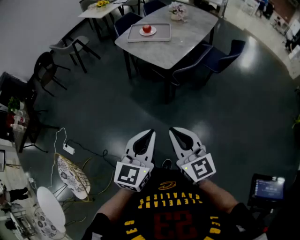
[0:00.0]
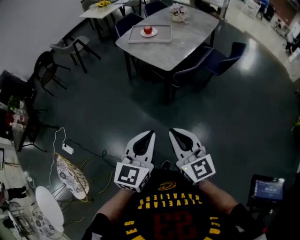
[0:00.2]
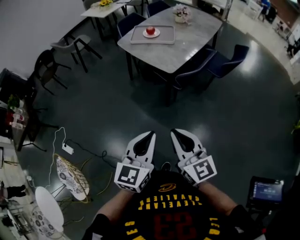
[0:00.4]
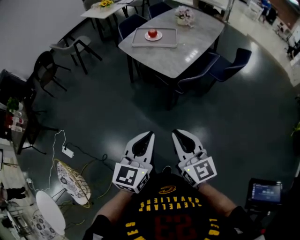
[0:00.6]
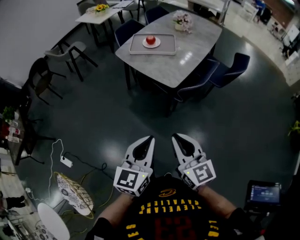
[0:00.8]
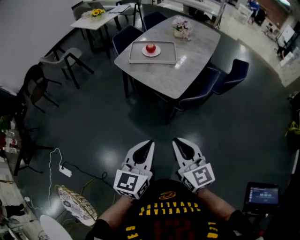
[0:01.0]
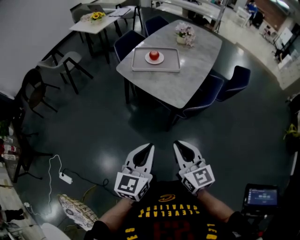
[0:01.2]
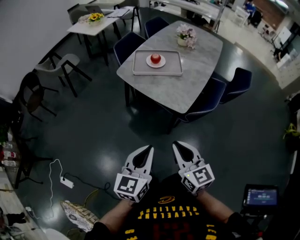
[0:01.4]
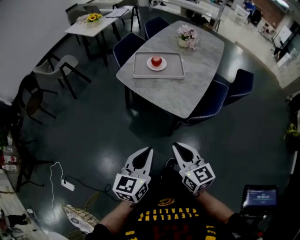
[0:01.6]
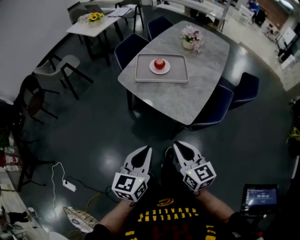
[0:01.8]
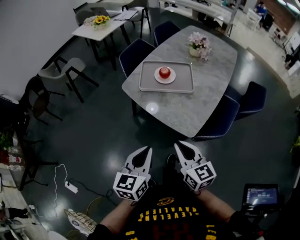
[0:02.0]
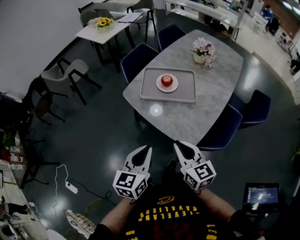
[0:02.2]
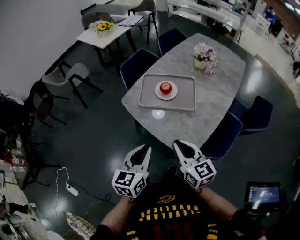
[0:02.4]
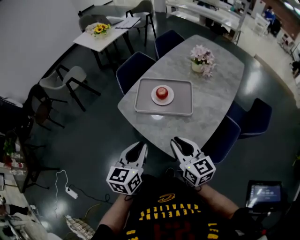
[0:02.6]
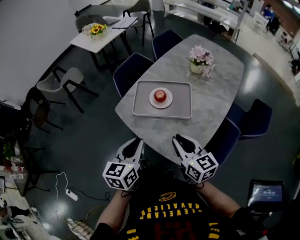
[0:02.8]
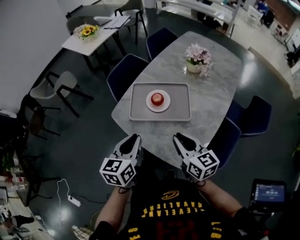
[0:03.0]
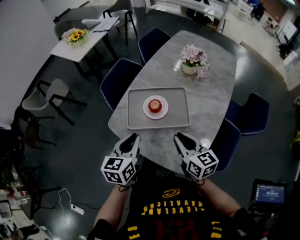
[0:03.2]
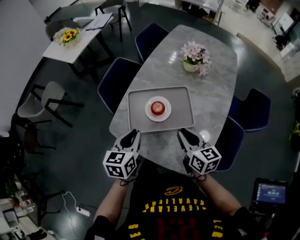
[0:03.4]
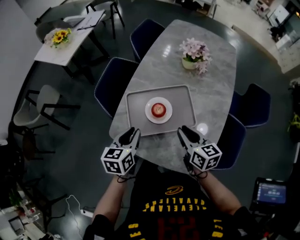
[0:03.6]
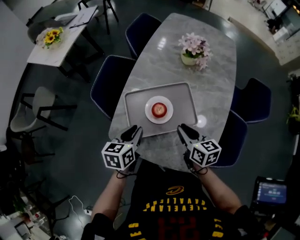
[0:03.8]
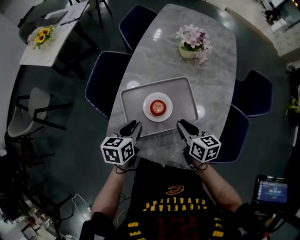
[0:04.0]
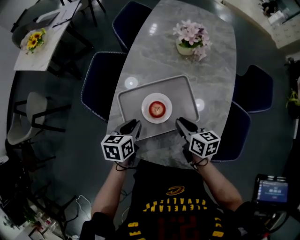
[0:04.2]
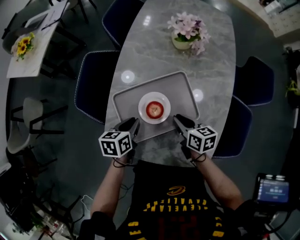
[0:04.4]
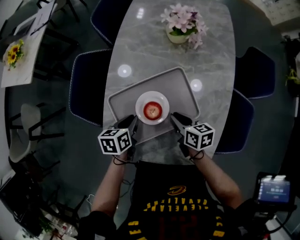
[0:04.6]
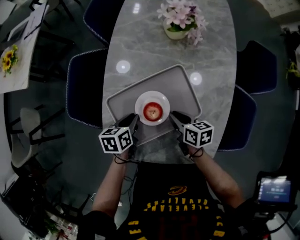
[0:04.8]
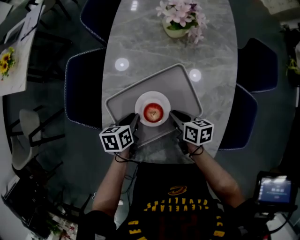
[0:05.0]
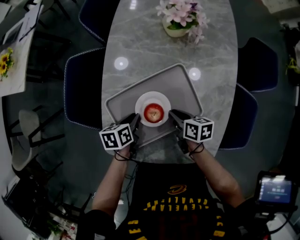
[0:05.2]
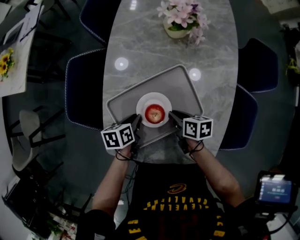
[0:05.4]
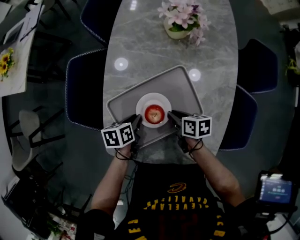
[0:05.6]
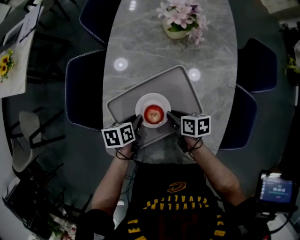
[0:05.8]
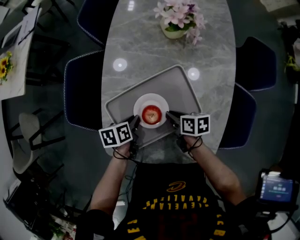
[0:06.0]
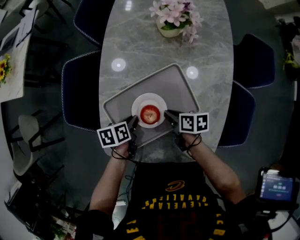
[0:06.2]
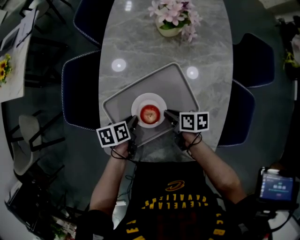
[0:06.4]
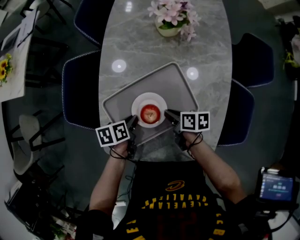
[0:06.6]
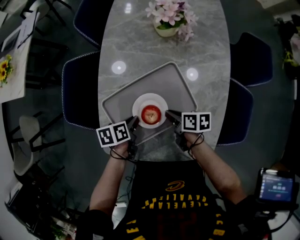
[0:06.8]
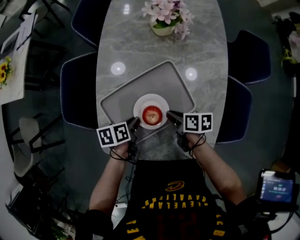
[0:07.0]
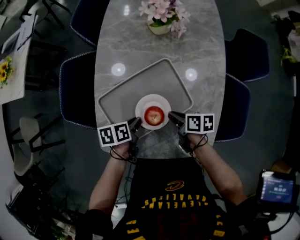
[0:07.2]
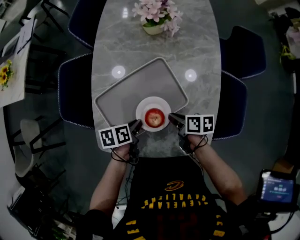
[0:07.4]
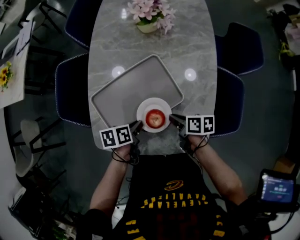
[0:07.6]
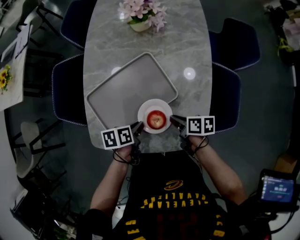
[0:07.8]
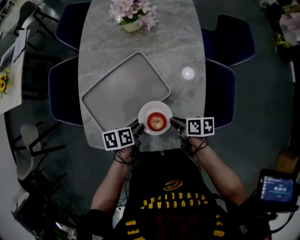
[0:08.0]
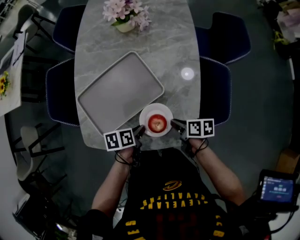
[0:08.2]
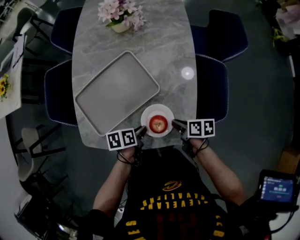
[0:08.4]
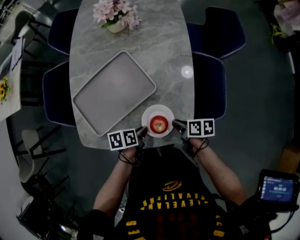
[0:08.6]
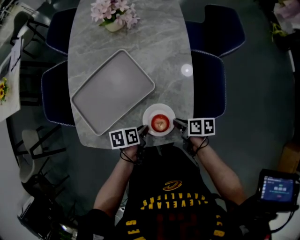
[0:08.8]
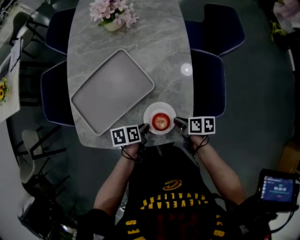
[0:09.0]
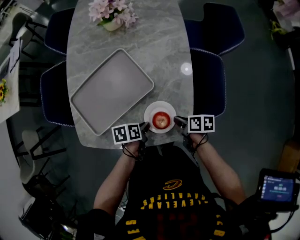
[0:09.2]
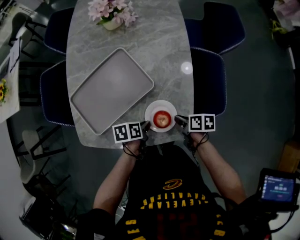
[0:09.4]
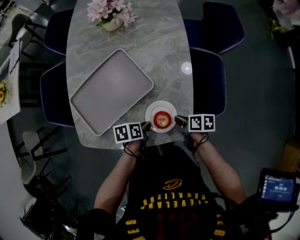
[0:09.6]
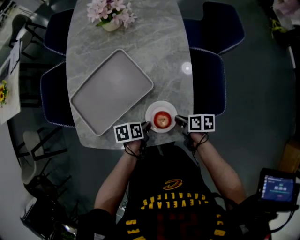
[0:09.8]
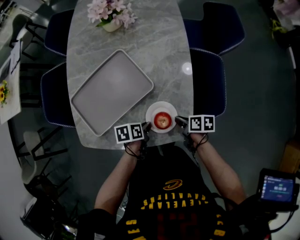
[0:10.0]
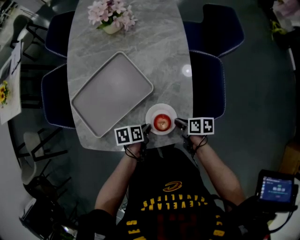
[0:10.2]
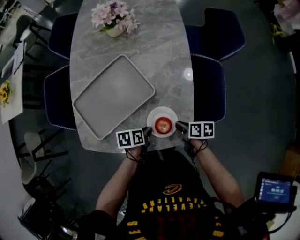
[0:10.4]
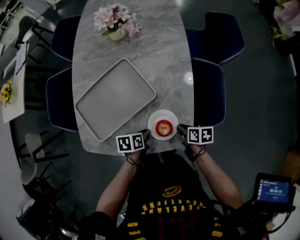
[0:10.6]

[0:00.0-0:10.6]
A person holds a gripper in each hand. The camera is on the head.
0:00.0 to 0:01.6: The right gripper shifts approximately 30 cm forward. The left gripper shifts some 35 cm forward and to the left.
0:01.6 to 0:03.0: Both grippers move forward, some 35 cm.
0:03.0 to 0:04.6: The right gripper is displaced downward by some 20 cm, and rotates about 40 degrees. The left gripper changes place by roughly 35 cm, and rotates roughly 40 degrees.
0:04.6 to 0:06.0: Both grippers move downward, approximately 5 cm.
0:06.0 to 0:07.6: Both grippers travel together to the right and backward, about 10 cm.
0:07.6 to 0:09.0: Both grippers travel together to the right and backward, some 15 cm.
0:09.0 to 0:10.6: The grippers stay close to where they were, moving slightly.

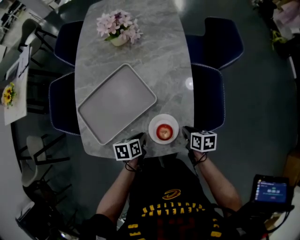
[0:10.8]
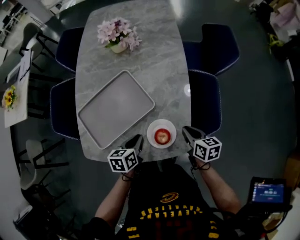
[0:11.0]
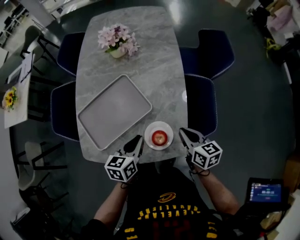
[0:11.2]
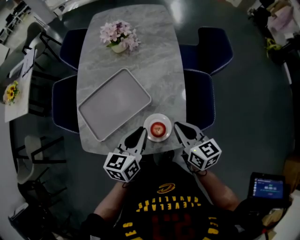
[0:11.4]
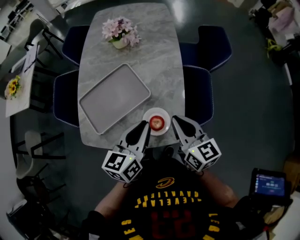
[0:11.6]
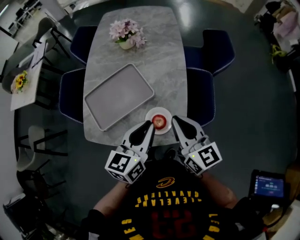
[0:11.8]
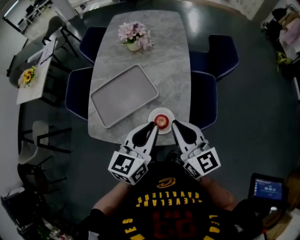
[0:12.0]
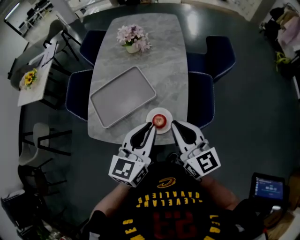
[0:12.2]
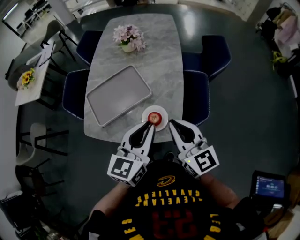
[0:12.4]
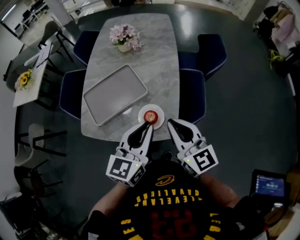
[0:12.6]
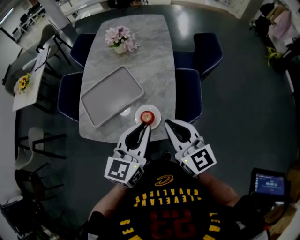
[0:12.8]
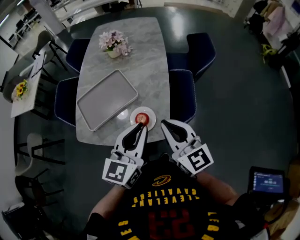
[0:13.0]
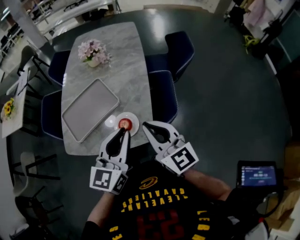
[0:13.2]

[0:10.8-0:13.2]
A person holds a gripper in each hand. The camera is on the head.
0:10.8 to 0:12.0: Both grippers travel together upward, some 30 cm. The left gripper angles its fingers upward, by roughly 40 degrees, while the right gripper points its fingers approximately 50 degrees further upward.
0:12.0 to 0:13.2: The left gripper changes place by approximately 5 cm.

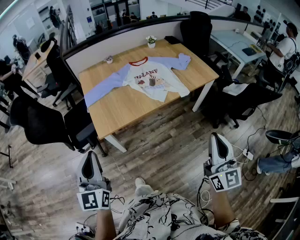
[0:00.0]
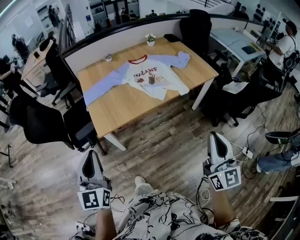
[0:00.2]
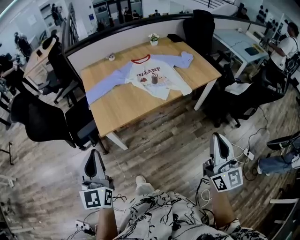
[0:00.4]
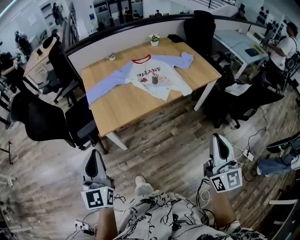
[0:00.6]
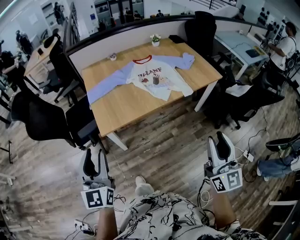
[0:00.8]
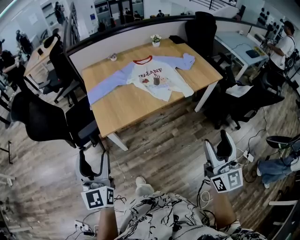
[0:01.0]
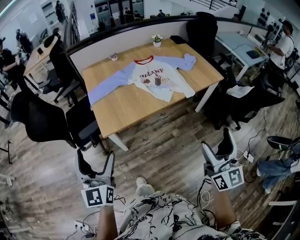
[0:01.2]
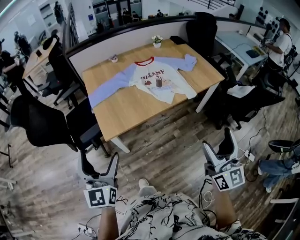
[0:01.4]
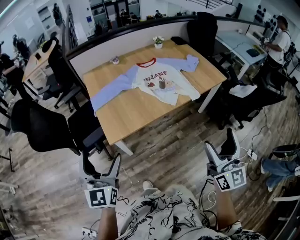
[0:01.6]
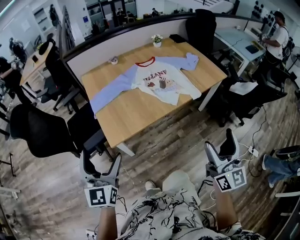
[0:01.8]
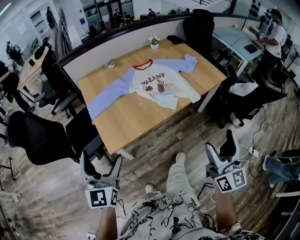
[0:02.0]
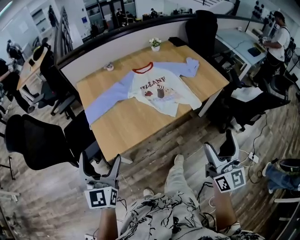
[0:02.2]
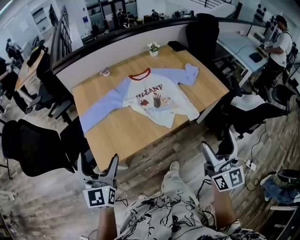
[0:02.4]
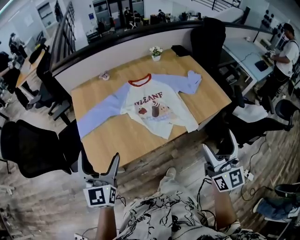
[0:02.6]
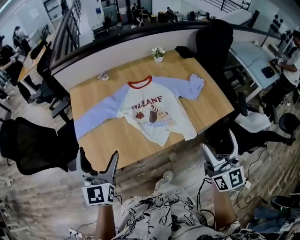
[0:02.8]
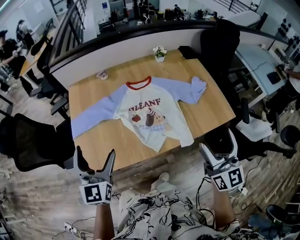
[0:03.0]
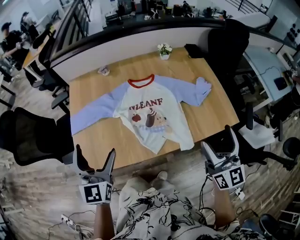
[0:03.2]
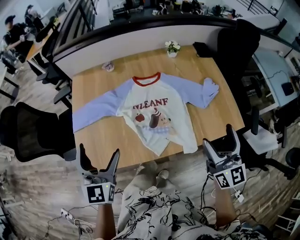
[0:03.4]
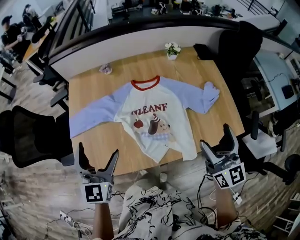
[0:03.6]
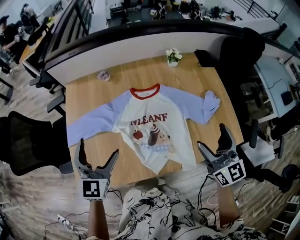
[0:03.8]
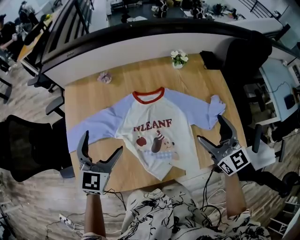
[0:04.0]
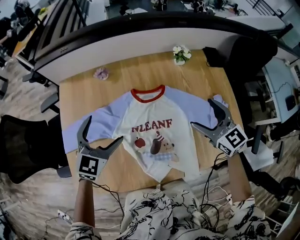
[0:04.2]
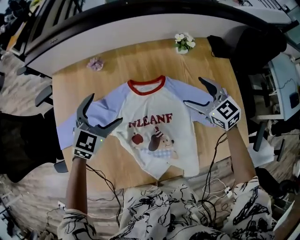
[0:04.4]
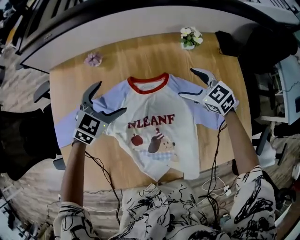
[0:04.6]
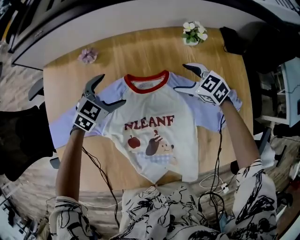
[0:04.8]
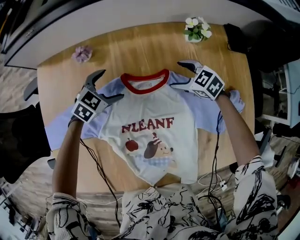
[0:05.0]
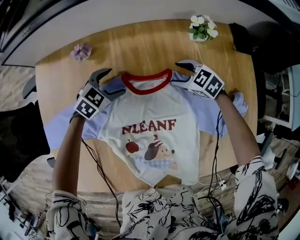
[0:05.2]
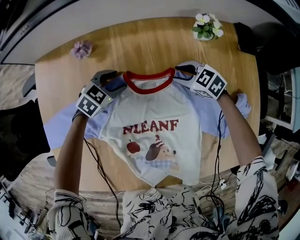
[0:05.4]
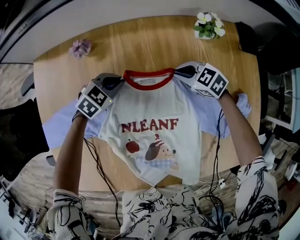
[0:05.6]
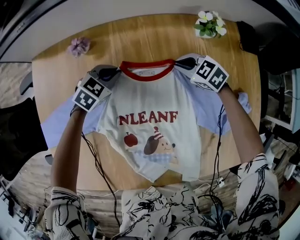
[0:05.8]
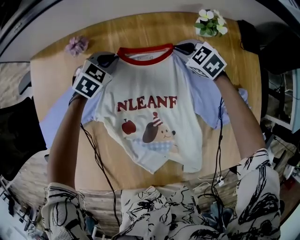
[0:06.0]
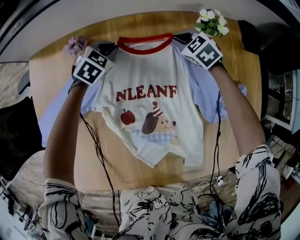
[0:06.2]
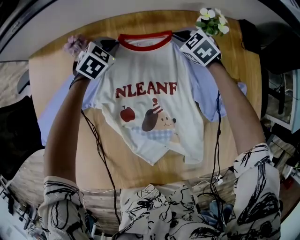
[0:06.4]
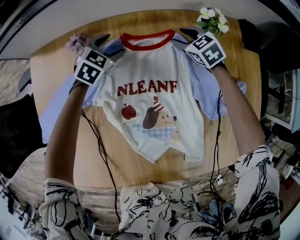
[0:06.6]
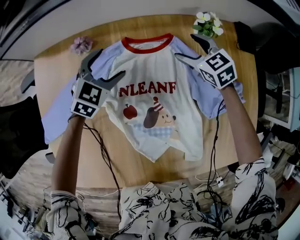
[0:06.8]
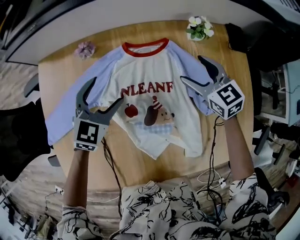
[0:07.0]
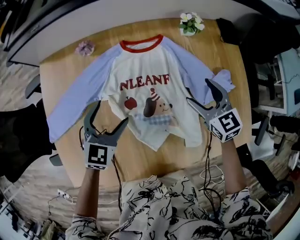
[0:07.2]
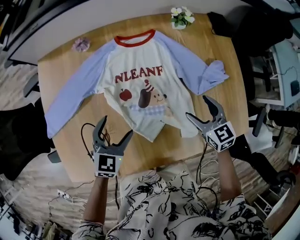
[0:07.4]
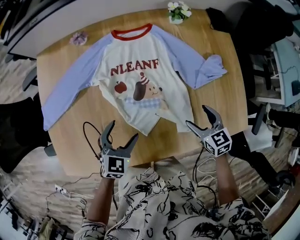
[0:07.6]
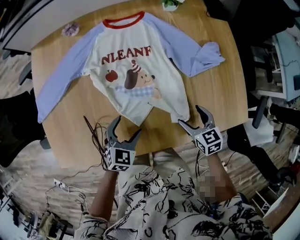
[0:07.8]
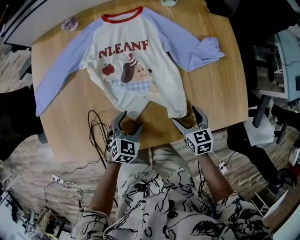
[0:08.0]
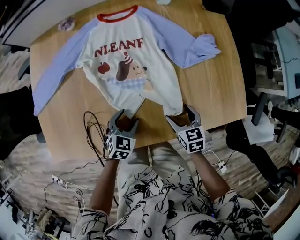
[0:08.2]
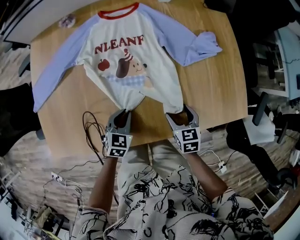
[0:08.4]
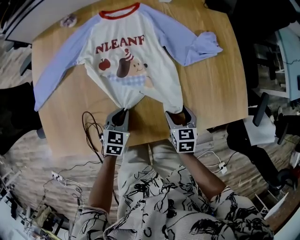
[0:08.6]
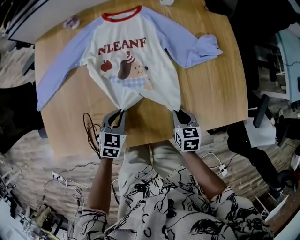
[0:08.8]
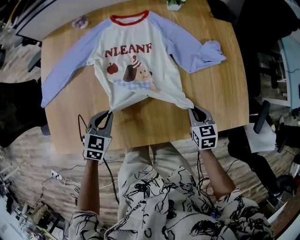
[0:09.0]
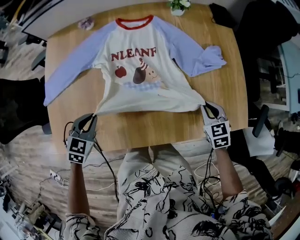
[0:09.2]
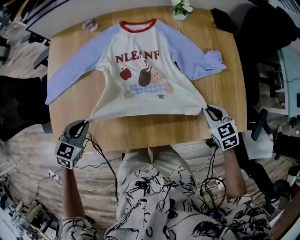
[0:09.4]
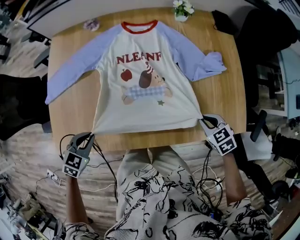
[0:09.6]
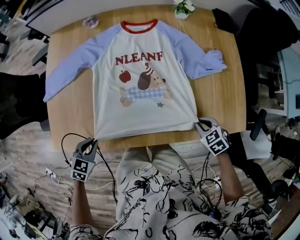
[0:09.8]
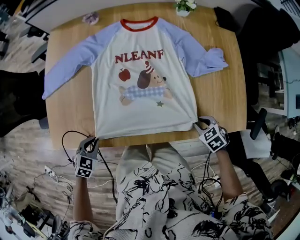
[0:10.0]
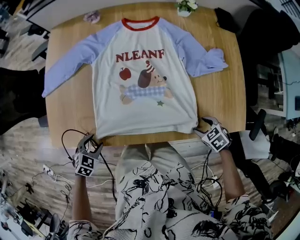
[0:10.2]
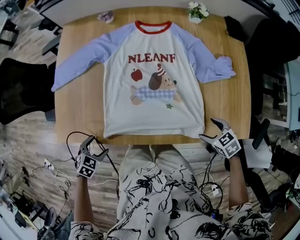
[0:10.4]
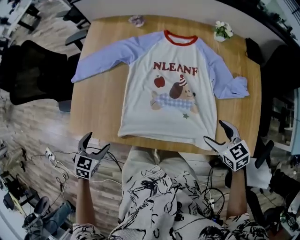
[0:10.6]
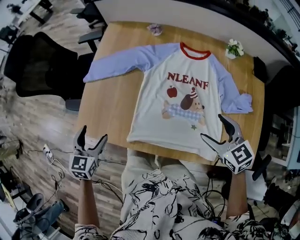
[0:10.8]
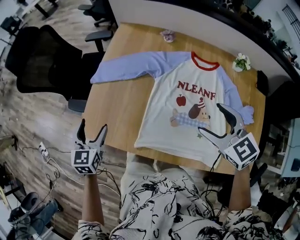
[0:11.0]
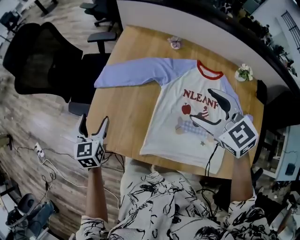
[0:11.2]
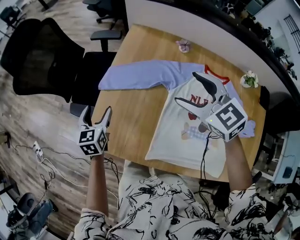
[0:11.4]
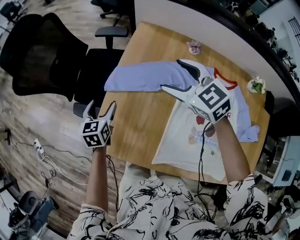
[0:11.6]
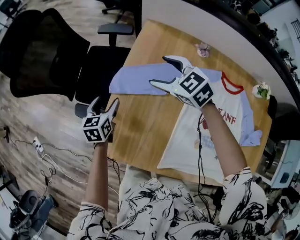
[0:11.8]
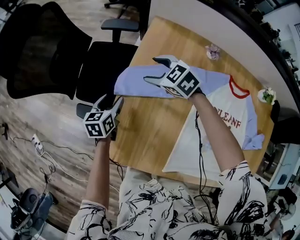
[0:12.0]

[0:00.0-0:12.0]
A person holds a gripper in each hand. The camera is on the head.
0:00.0 to 0:01.6: The left gripper is displaced forward by about 5 cm, and opens, while the right gripper goes some 10 cm to the left and forward, and opens up.
0:01.6 to 0:03.0: The grippers both shift forward and to the right by approximately 40 cm.
0:03.0 to 0:04.4: The two grippers go approximately 50 cm forward and downward. The left gripper rotates approximately 40 degrees. Meanwhile the right gripper tips its fingers downward by some 30 degrees.
0:04.4 to 0:06.0: The grippers both shift downward by some 20 cm. The right gripper swivels approximately 30 degrees, and closes up. The left gripper closes its fingers.
0:06.0 to 0:07.6: Both grippers are carried backward, about 40 cm. The right gripper rotates roughly 30 degrees, and opens its fingers. The left gripper opens.
0:07.6 to 0:09.0: The right gripper heads downward and to the right, covering approximately 10 cm, and closes. The left gripper moves about 10 cm downward and comes back, and closes.
0:09.0 to 0:10.4: The right gripper moves up and down over some 10 cm, changing direction 2 times, turns by about 40 degrees, and opens its fingers. Meanwhile the left gripper heads backward and to the left, covering approximately 20 cm, and opens up.
0:10.4 to 0:12.0: The two grippers travel together, approximately 60 cm. The right gripper changes its angle by some 40 degrees. Meanwhile the left gripper rotates around the line of its fingers by some 50 degrees, counterclockwise from behind.
